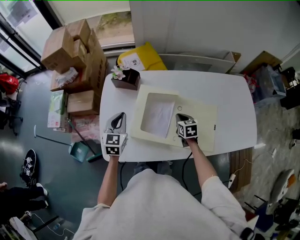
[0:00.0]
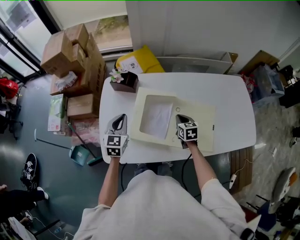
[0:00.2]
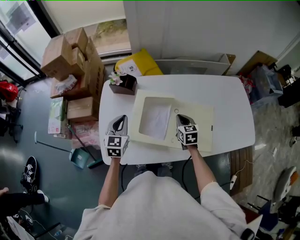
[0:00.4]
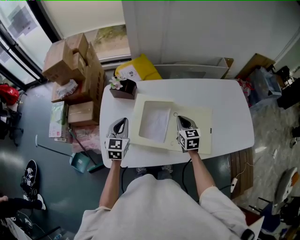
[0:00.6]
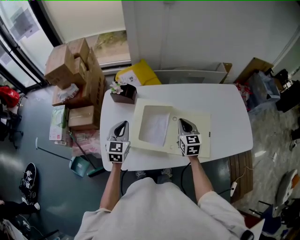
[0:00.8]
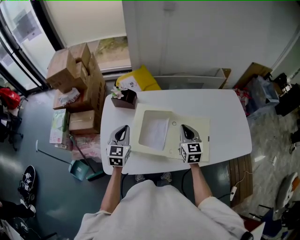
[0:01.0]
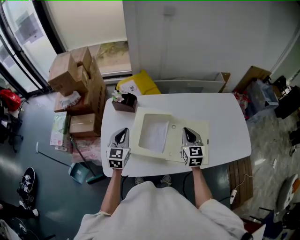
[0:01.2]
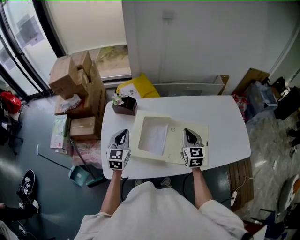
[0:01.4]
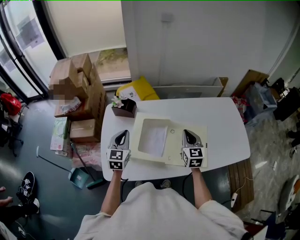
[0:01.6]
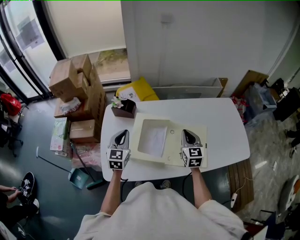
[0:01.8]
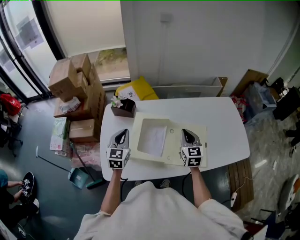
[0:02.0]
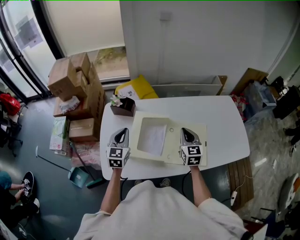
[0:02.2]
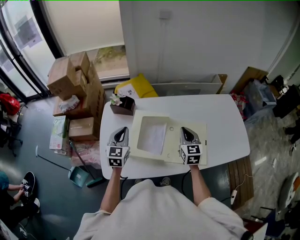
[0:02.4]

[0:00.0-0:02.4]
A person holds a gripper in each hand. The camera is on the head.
0.0 to 1.2 s: The right gripper goes some 20 cm upward, and changes its angle by some 30 degrees, while the left gripper is displaced upward by roughly 5 cm.
1.2 to 2.4 s: The grippers stay close to where they were, moving slightly.

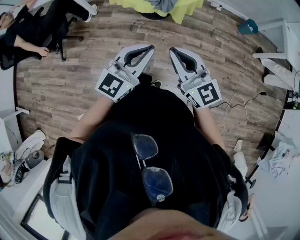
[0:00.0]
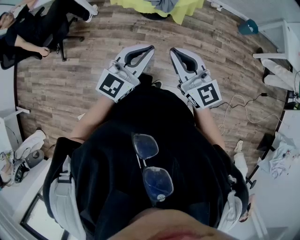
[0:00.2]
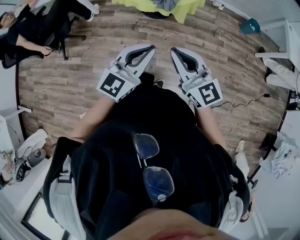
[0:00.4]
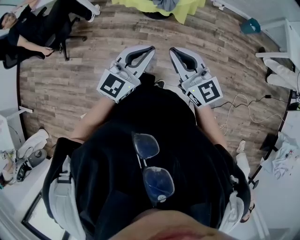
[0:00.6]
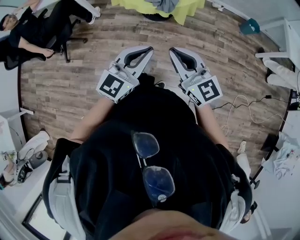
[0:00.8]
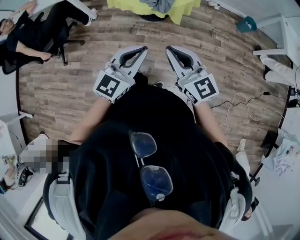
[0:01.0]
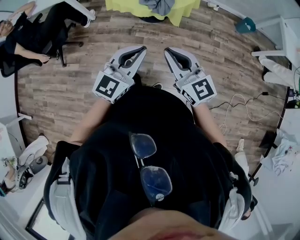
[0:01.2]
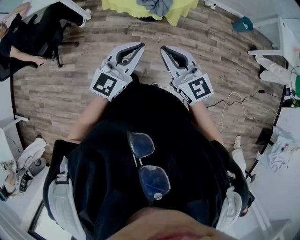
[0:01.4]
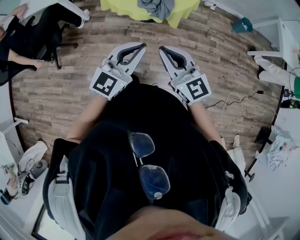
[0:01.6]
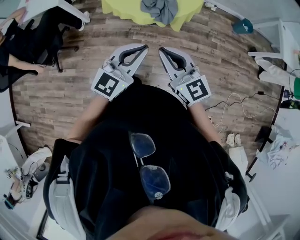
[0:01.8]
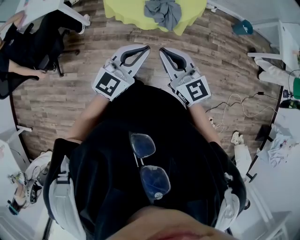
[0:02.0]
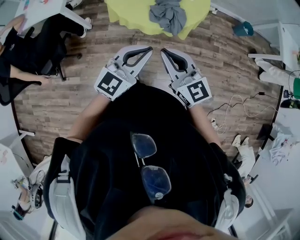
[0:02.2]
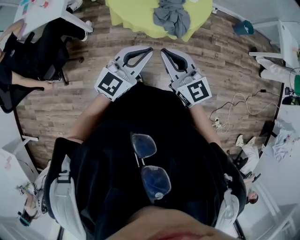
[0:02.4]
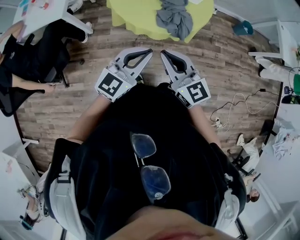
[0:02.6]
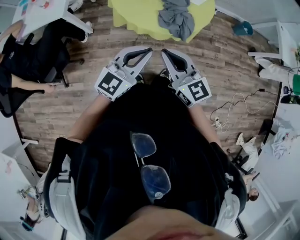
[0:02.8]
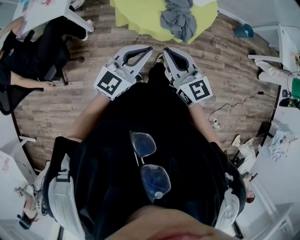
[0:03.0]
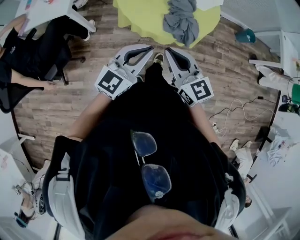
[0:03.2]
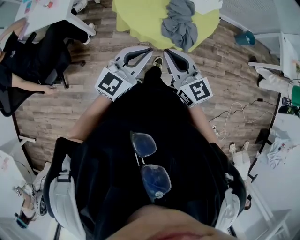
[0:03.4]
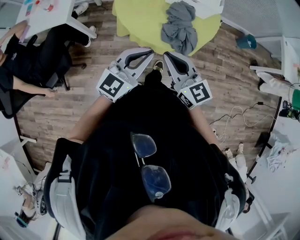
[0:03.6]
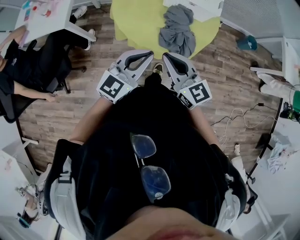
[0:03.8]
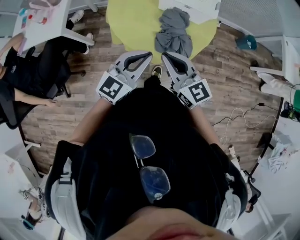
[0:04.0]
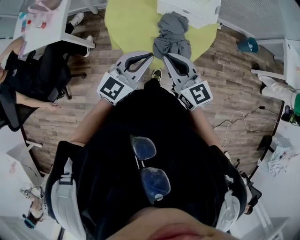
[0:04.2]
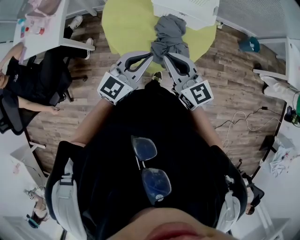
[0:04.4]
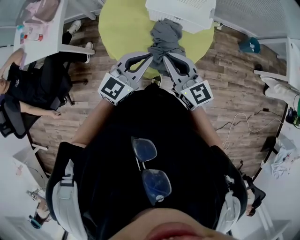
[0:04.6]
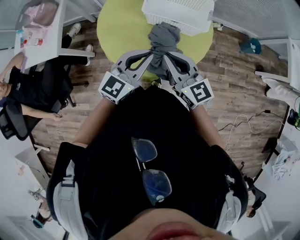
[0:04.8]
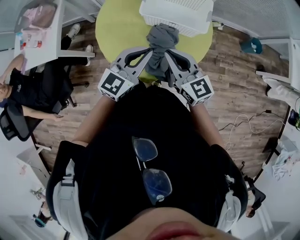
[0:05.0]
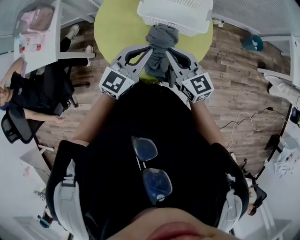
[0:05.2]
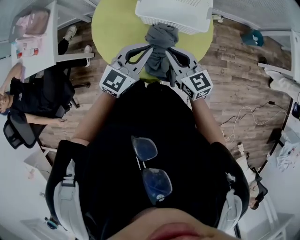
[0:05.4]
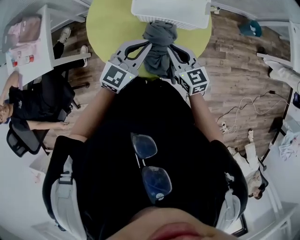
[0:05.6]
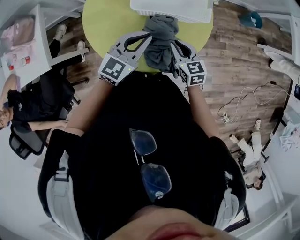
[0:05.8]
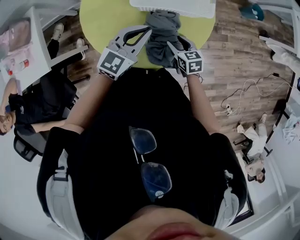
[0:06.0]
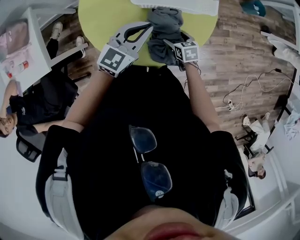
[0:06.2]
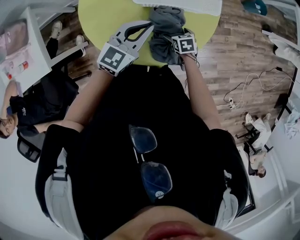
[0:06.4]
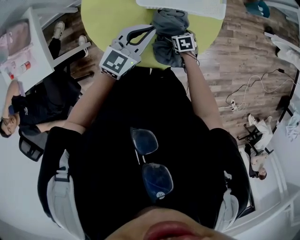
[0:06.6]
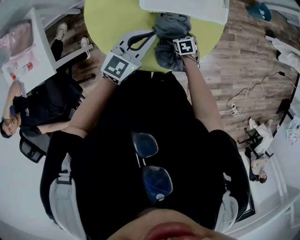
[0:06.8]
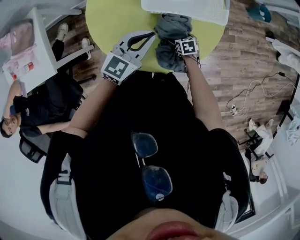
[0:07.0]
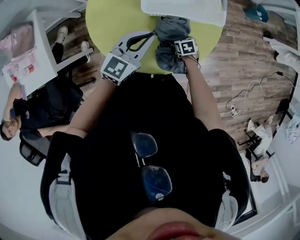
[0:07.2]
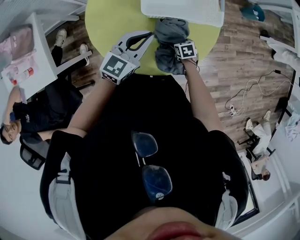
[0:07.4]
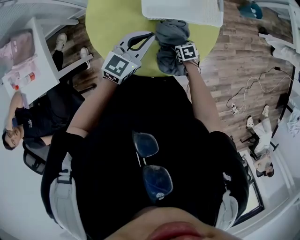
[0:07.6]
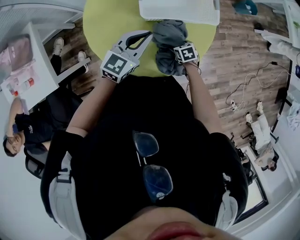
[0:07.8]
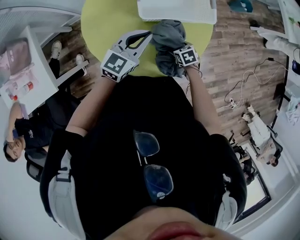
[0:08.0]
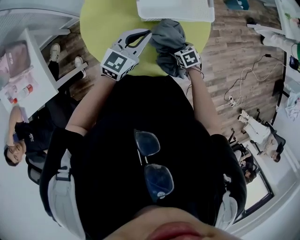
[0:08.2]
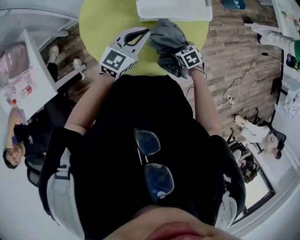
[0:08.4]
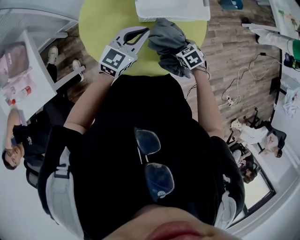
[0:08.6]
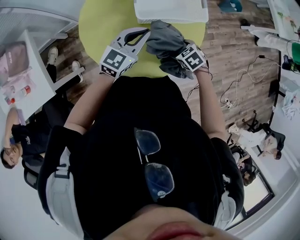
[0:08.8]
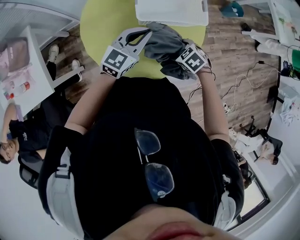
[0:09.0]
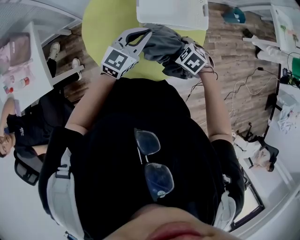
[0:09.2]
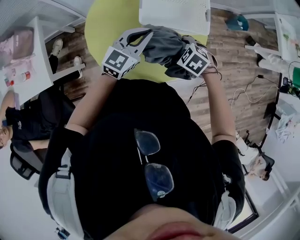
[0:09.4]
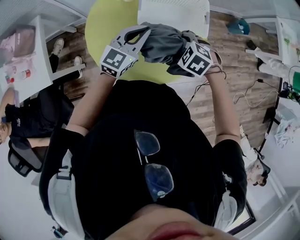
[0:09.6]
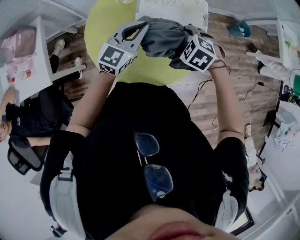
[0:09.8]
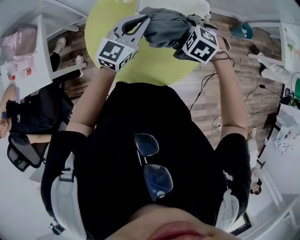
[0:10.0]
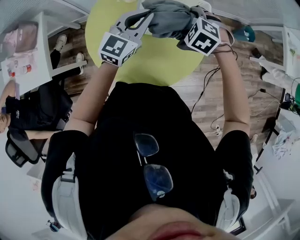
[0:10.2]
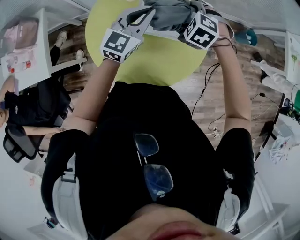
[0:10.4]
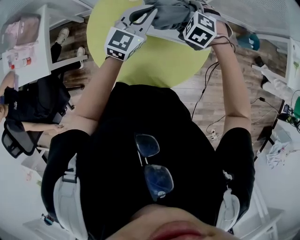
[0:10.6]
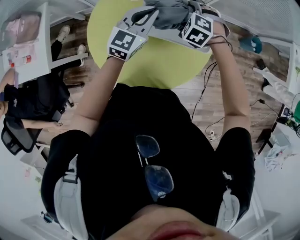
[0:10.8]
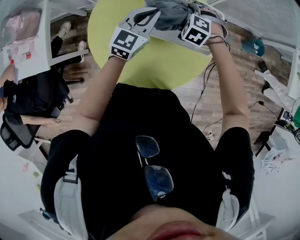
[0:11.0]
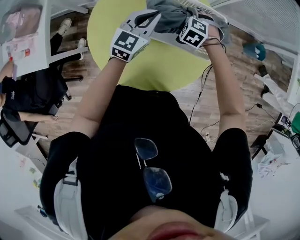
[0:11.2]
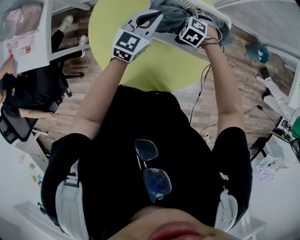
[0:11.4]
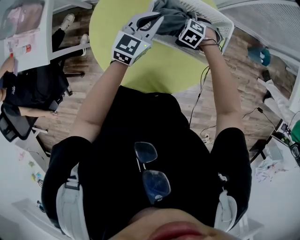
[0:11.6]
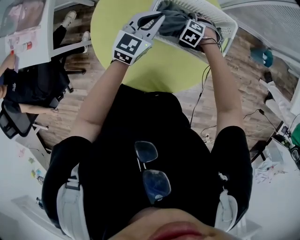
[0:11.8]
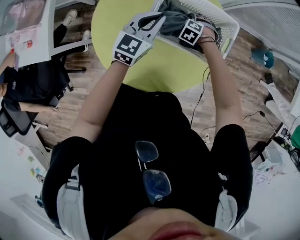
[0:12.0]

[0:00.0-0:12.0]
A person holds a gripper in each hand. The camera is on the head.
0.0 to 1.6 s: The two grippers go about 10 cm forward.
1.6 to 3.0 s: Both grippers move to the left and forward, approximately 25 cm.
3.0 to 4.4 s: Both grippers move forward, some 20 cm.
4.4 to 6.0 s: The left gripper travels forward and downward by about 20 cm. The right gripper heads downward and forward, covering approximately 30 cm, points its fingers roughly 40 degrees further downward, and opens.
6.0 to 7.6 s: The left gripper ends up roughly 5 cm from where it was. Meanwhile the right gripper is displaced downward by approximately 15 cm, turns by approximately 20 degrees, and opens its fingers.
7.6 to 9.0 s: The right gripper goes approximately 20 cm upward, and rotates some 30 degrees.
9.0 to 10.4 s: The right gripper is displaced forward and upward by roughly 25 cm, and twists some 40 degrees counterclockwise, seen from behind; the left gripper moves forward and upward, roughly 15 cm, and rotates about 20 degrees.
10.4 to 12.0 s: The right gripper goes about 25 cm downward; the left gripper shifts some 10 cm downward.

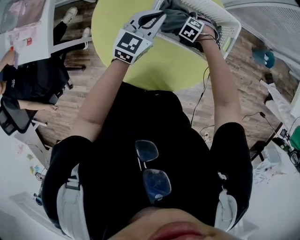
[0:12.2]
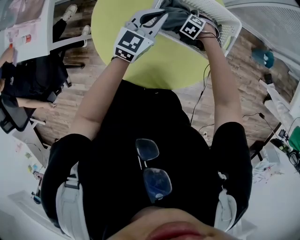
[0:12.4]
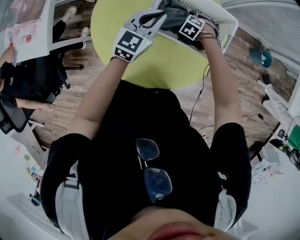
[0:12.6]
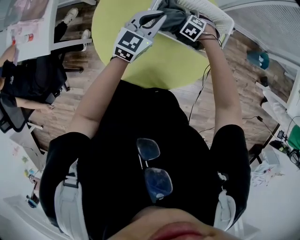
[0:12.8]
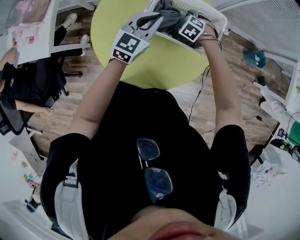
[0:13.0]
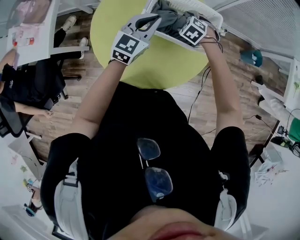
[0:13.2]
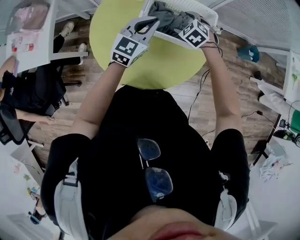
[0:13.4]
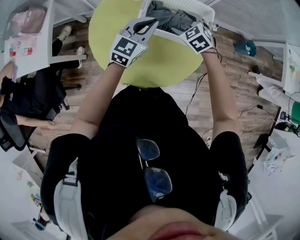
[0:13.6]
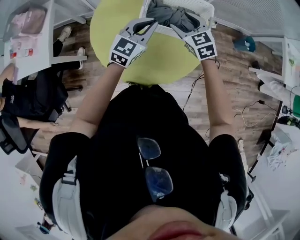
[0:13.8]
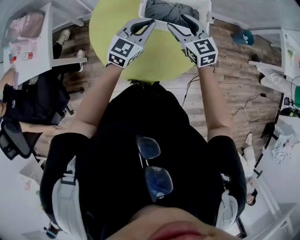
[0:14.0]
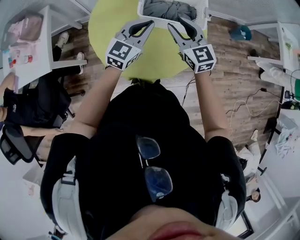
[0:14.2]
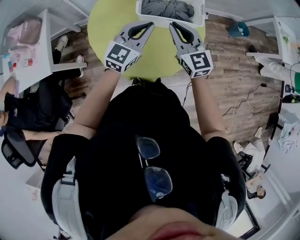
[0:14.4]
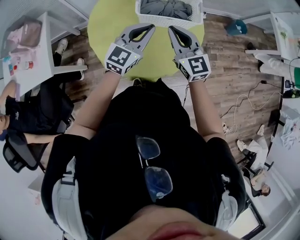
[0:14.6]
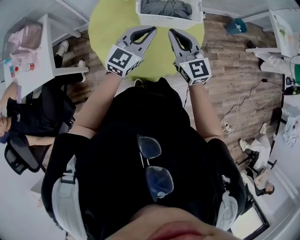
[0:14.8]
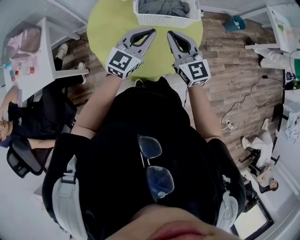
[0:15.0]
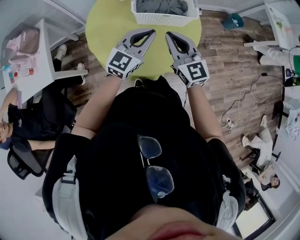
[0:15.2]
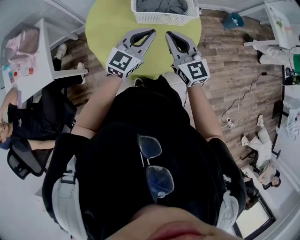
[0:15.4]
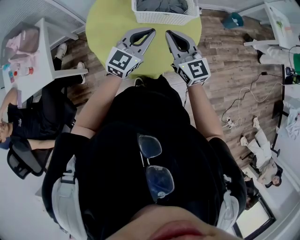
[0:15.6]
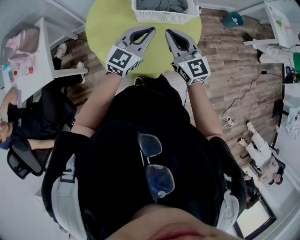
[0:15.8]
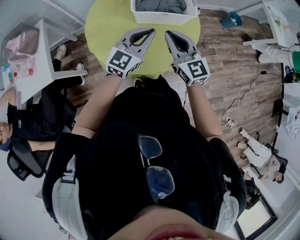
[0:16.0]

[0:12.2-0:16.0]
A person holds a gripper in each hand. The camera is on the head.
12.2 to 13.4 s: The right gripper is displaced upward by roughly 20 cm, and rotates approximately 20 degrees; the left gripper ends up some 10 cm from where it was.
13.4 to 14.8 s: The left gripper travels backward by approximately 15 cm, while the right gripper travels backward and upward by roughly 30 cm, points its fingers roughly 50 degrees further upward, and closes up.
14.8 to 16.0 s: The grippers make only small movements.

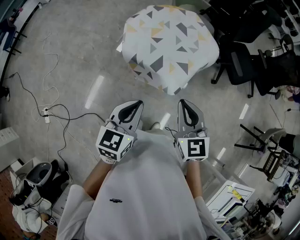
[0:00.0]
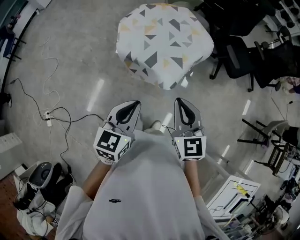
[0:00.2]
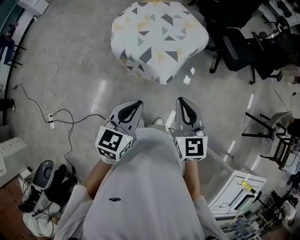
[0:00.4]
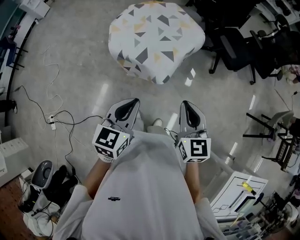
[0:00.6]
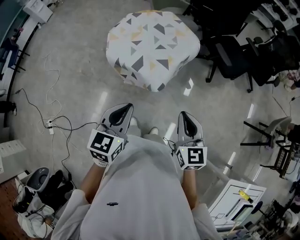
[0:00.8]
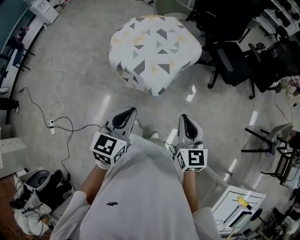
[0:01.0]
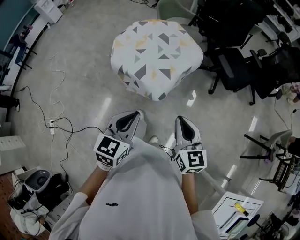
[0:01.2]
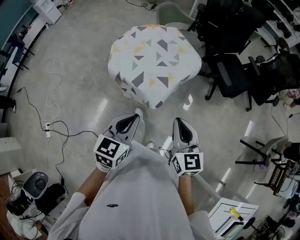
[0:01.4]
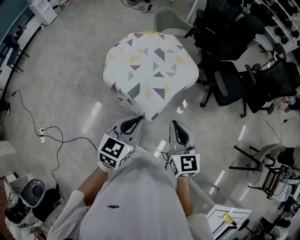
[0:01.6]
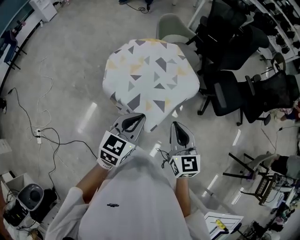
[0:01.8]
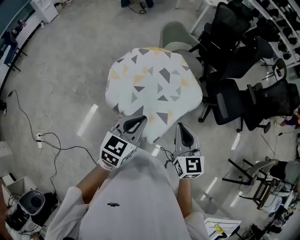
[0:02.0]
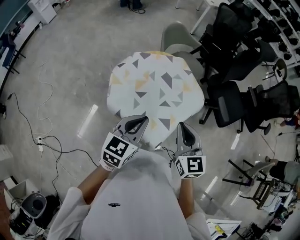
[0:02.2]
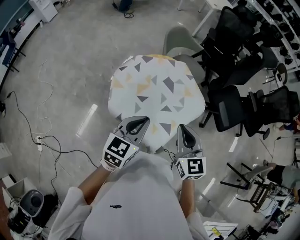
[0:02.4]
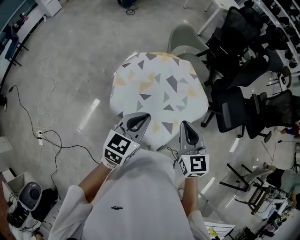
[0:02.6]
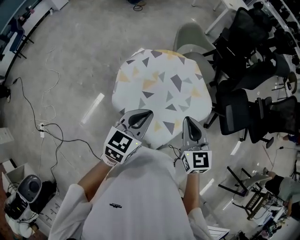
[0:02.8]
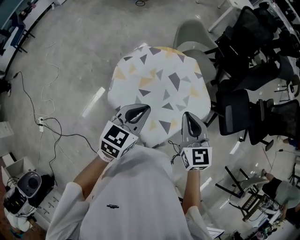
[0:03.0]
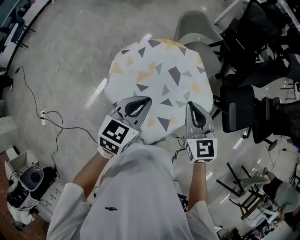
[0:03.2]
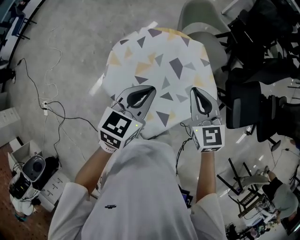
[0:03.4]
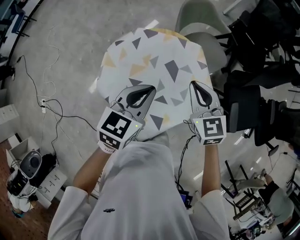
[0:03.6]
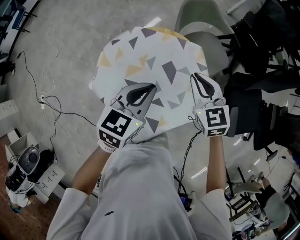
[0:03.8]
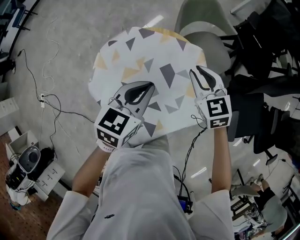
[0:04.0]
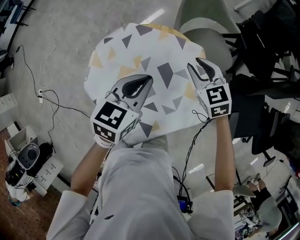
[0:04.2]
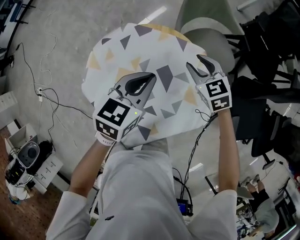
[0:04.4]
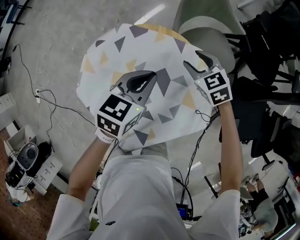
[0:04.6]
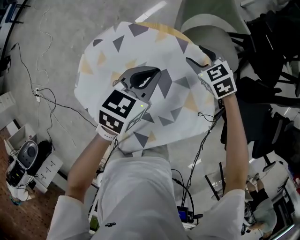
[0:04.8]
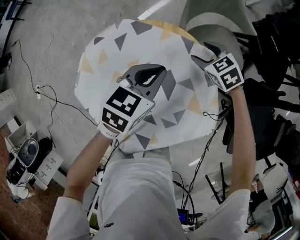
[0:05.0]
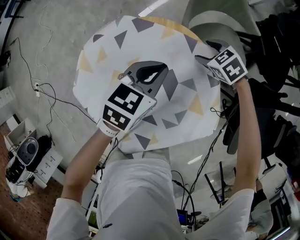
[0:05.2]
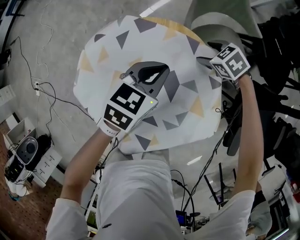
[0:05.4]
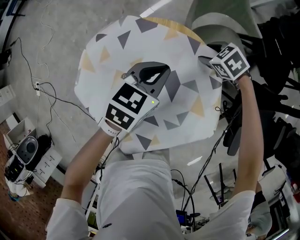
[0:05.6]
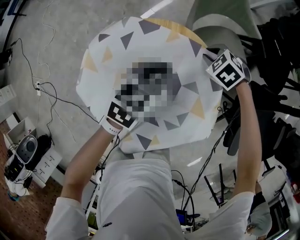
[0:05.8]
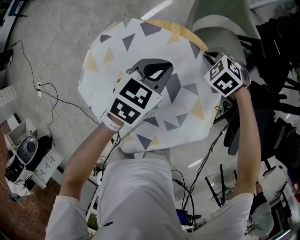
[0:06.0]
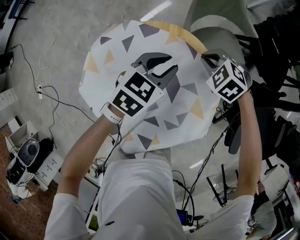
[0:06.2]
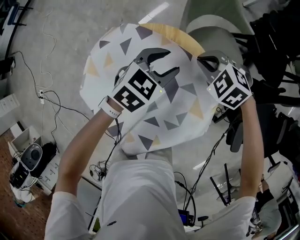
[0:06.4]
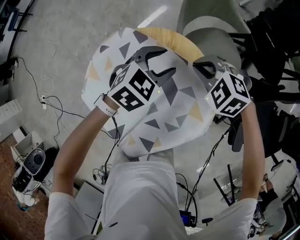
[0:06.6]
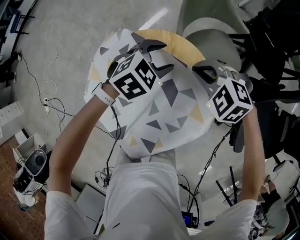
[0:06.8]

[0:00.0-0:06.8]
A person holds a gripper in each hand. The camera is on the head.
0.0 to 1.4 s: Both grippers travel together to the right, some 15 cm.
1.4 to 2.8 s: Both grippers move forward, roughly 30 cm.
2.8 to 4.0 s: The right gripper heads forward and downward, covering approximately 30 cm, and changes its angle by about 30 degrees. The left gripper heads forward, to the right and downward, covering about 25 cm.
4.0 to 5.4 s: The two grippers go approximately 25 cm downward and forward. The right gripper angles its fingers downward, by some 30 degrees, and opens.
5.4 to 6.8 s: The left gripper shifts by roughly 5 cm, turns by some 40 degrees, and opens its fingers; the right gripper is displaced upward and backward by roughly 20 cm, turns by approximately 30 degrees, and closes its fingers.
